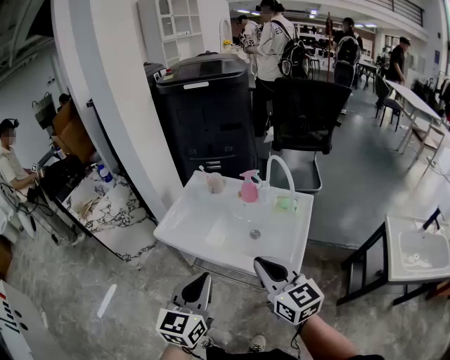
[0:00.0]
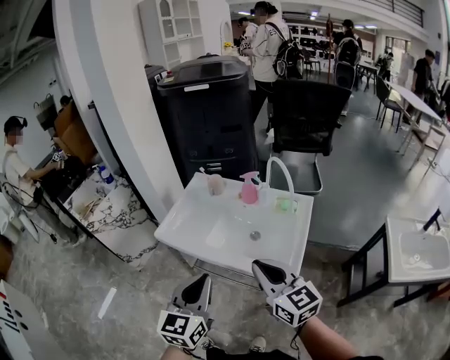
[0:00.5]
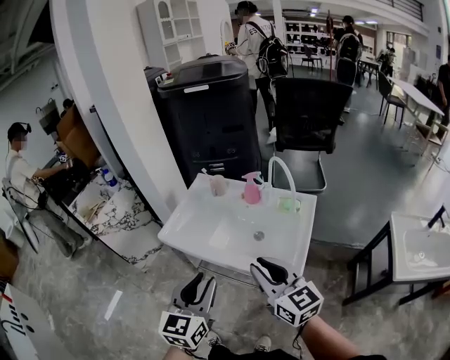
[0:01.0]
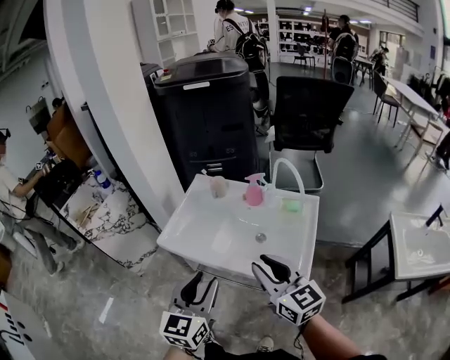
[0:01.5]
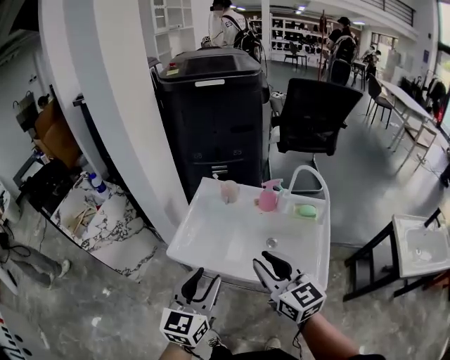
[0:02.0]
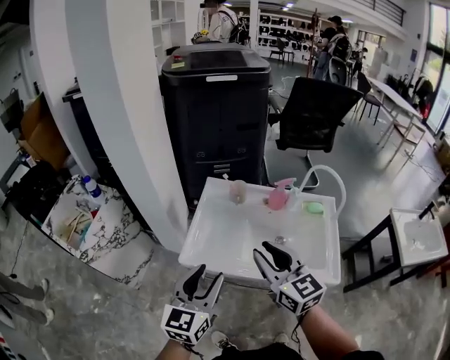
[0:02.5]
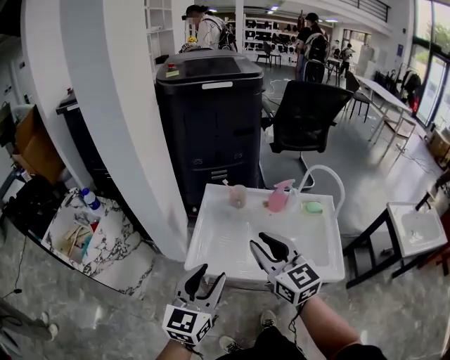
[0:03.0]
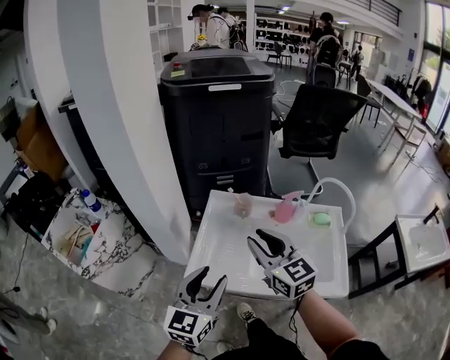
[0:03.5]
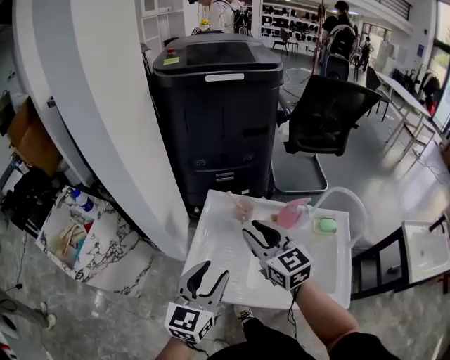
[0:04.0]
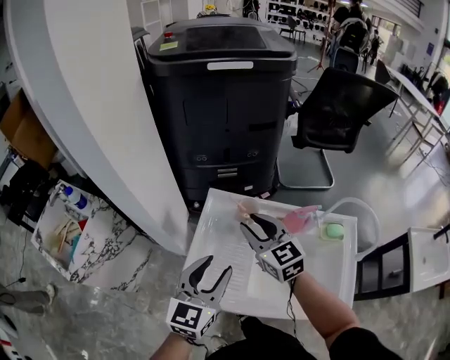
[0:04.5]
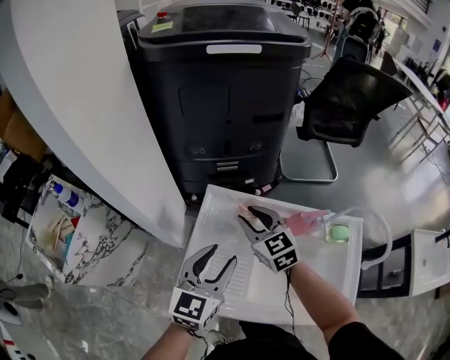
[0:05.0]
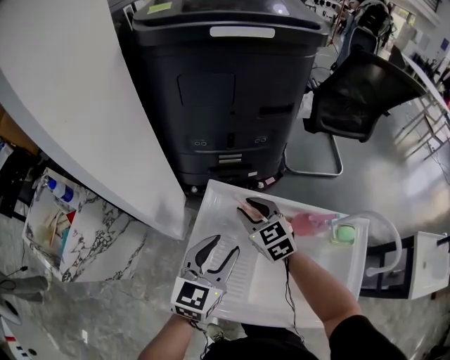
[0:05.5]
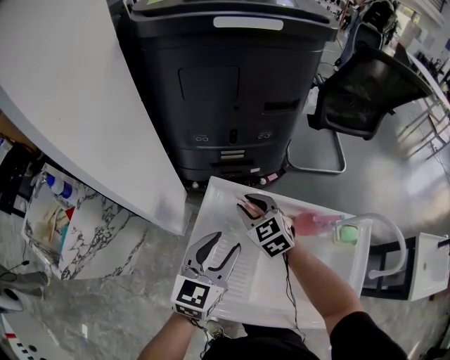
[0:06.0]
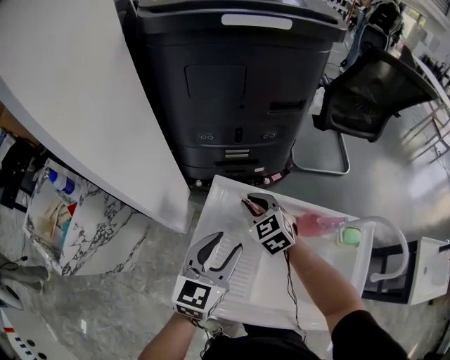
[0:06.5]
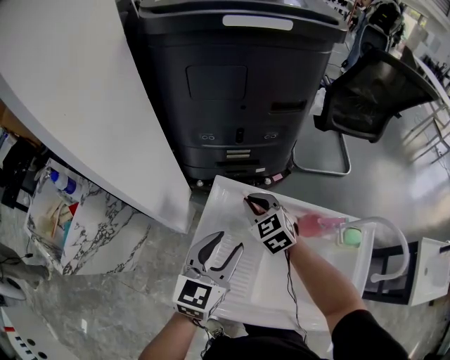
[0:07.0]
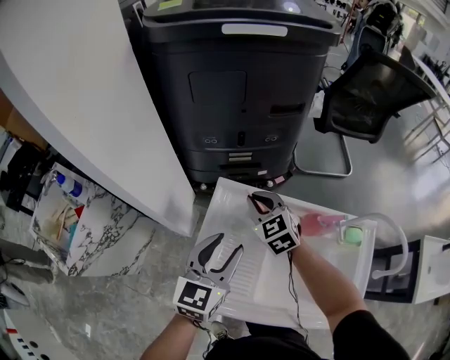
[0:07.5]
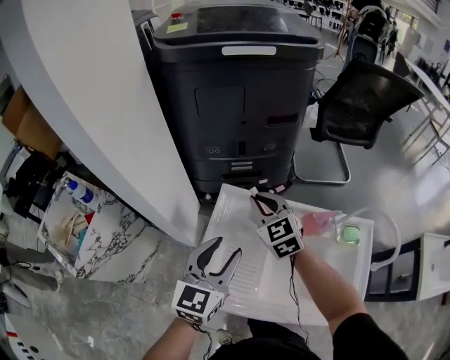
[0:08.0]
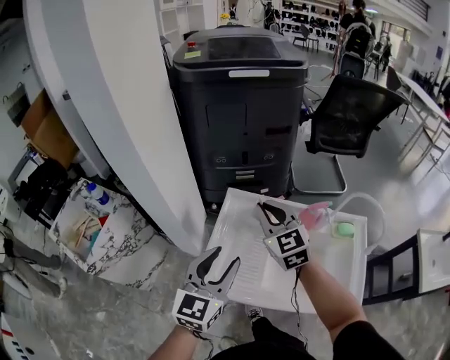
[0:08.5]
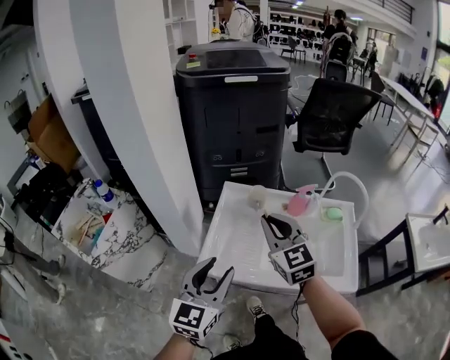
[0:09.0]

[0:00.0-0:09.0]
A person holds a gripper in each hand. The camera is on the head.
0:00.0 to 0:02.0: The right gripper shifts about 15 cm to the left and forward, and opens up. Meanwhile the left gripper is displaced forward and to the left by some 15 cm, and opens its fingers.
0:02.0 to 0:04.5: Both grippers travel together forward, about 30 cm.
0:04.5 to 0:07.0: The right gripper heads downward and forward, covering approximately 20 cm, changes its angle by roughly 20 degrees, and closes its fingers, while the left gripper shifts about 15 cm forward and downward.
0:07.0 to 0:09.0: Both grippers move backward and upward, roughly 35 cm. The right gripper turns by some 30 degrees.

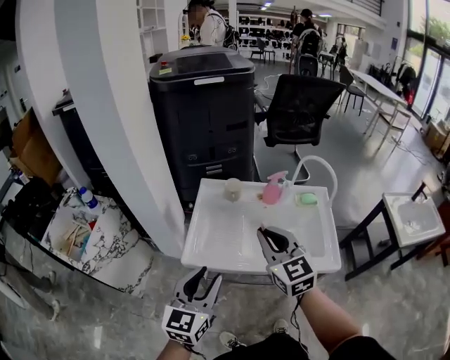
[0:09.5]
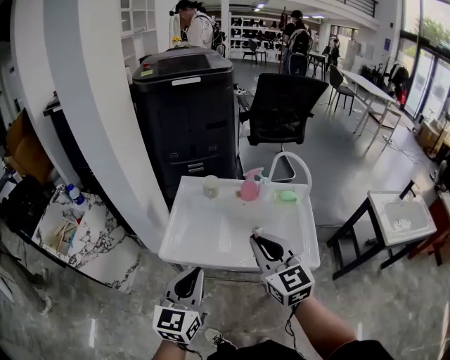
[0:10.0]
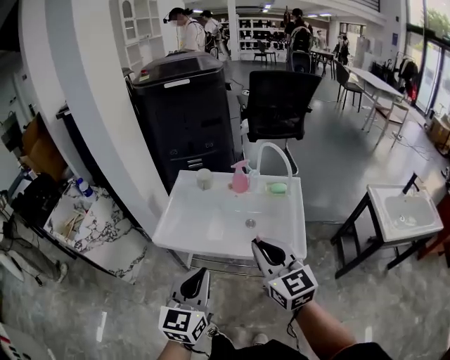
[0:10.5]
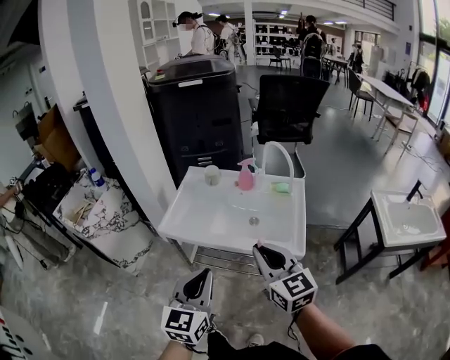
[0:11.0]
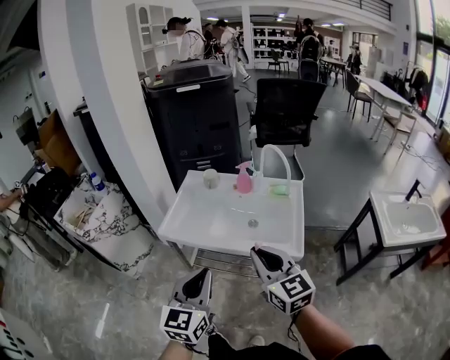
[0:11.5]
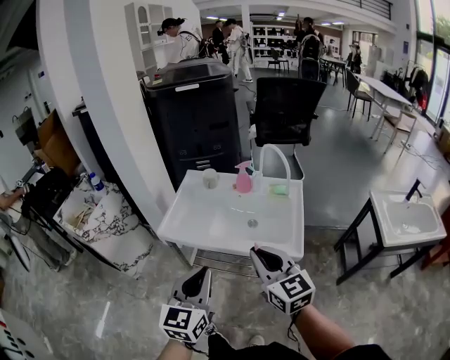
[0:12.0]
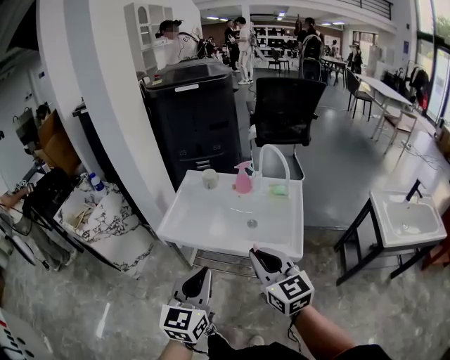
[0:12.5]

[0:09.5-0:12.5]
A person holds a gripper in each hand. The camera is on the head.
0:09.5 to 0:11.0: The left gripper heads to the right and backward, covering roughly 25 cm, and closes up; the right gripper travels backward and to the right by some 25 cm.
0:11.0 to 0:12.5: The grippers make only small movements.

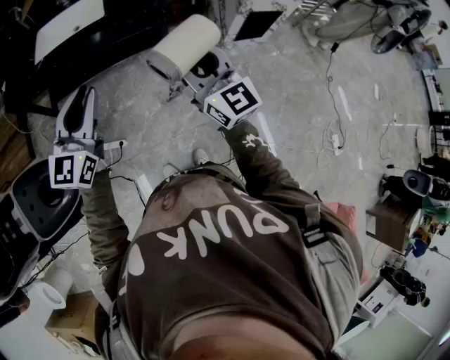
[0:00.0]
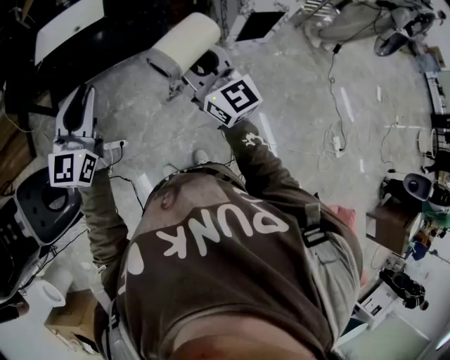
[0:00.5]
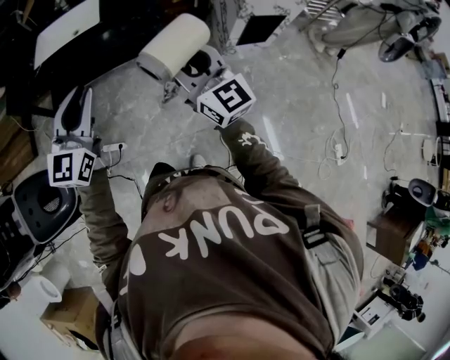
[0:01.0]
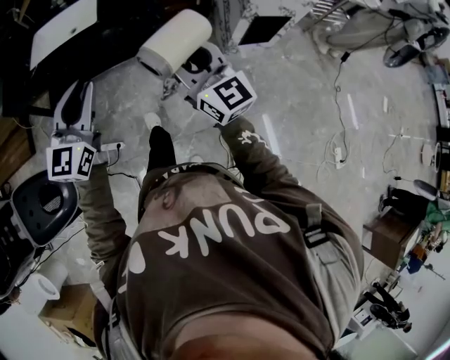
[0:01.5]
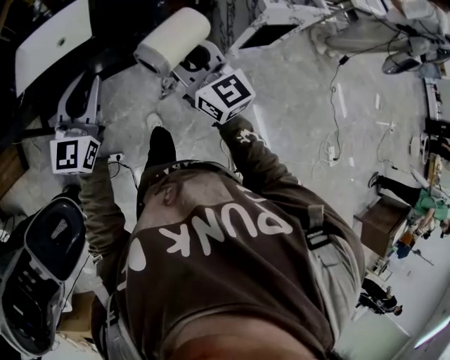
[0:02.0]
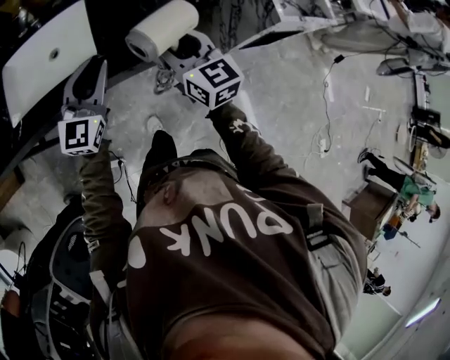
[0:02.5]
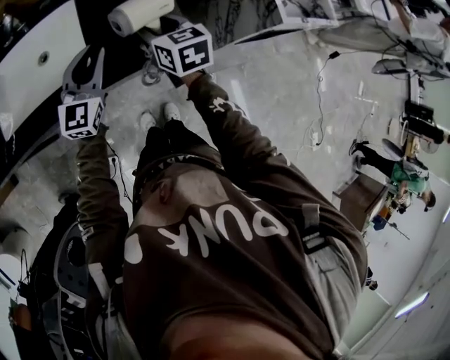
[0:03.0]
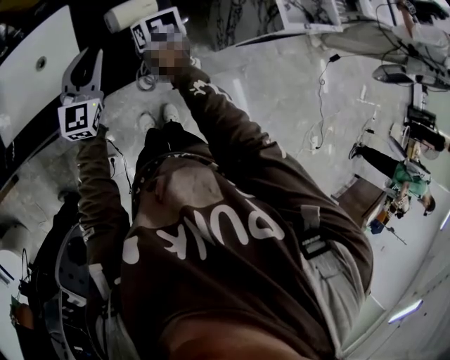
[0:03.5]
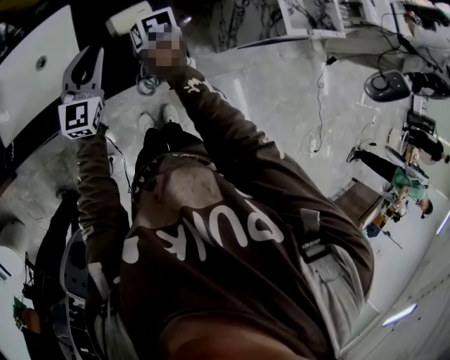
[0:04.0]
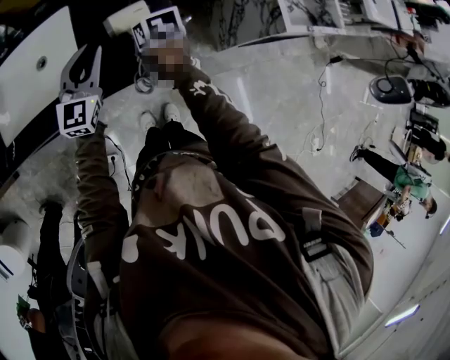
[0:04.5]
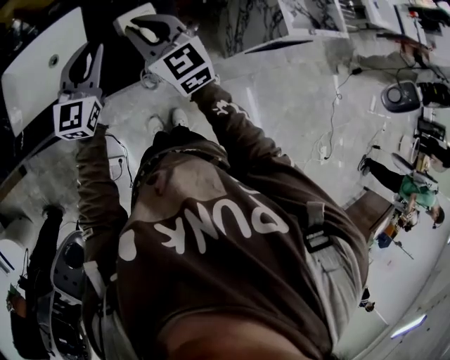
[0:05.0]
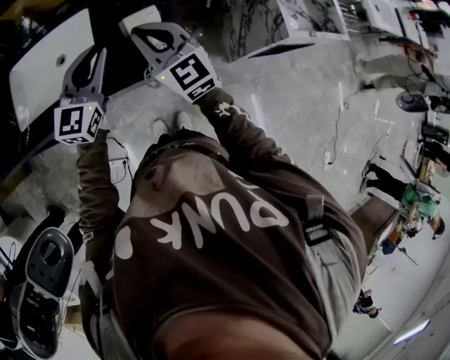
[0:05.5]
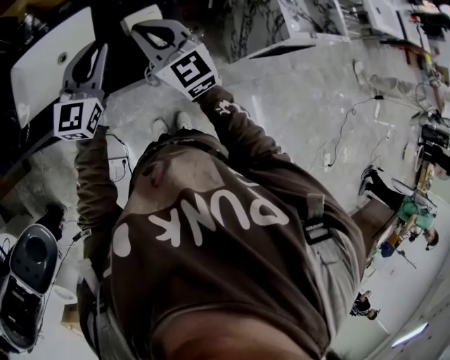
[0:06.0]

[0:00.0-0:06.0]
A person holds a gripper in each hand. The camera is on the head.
0:00.0 to 0:02.0: The two grippers go approximately 30 cm forward.
0:02.0 to 0:04.0: The left gripper moves forward, some 30 cm. Meanwhile the right gripper shifts some 40 cm forward and downward, and angles its fingers downward, by approximately 60 degrees.
0:04.0 to 0:06.0: The right gripper shifts roughly 25 cm upward, angles its fingers upward, by roughly 50 degrees, and closes. Meanwhile the left gripper heads upward and backward, covering roughly 10 cm.

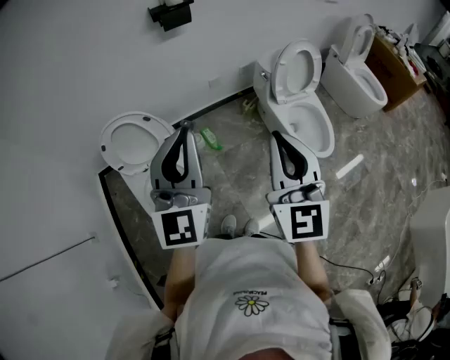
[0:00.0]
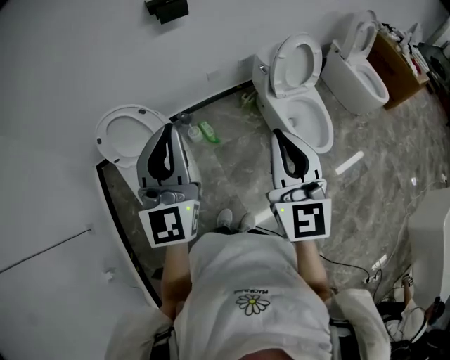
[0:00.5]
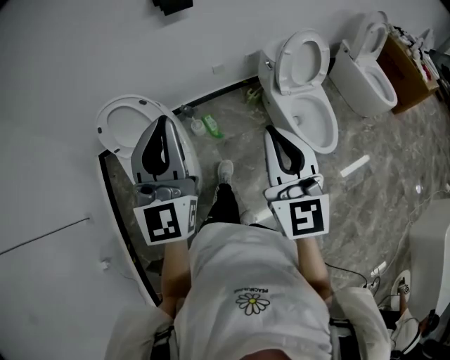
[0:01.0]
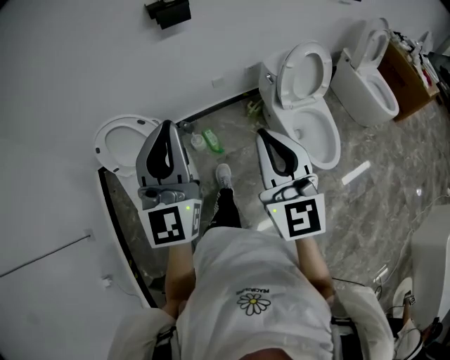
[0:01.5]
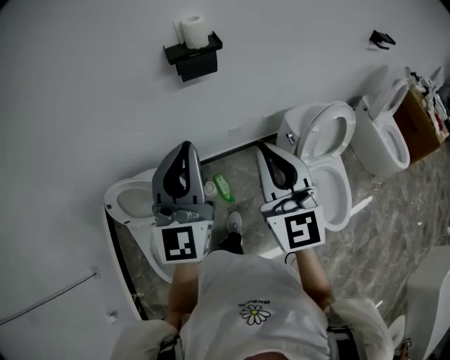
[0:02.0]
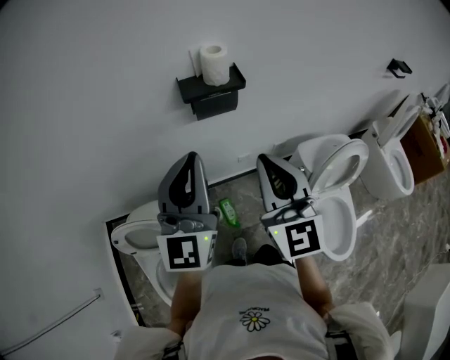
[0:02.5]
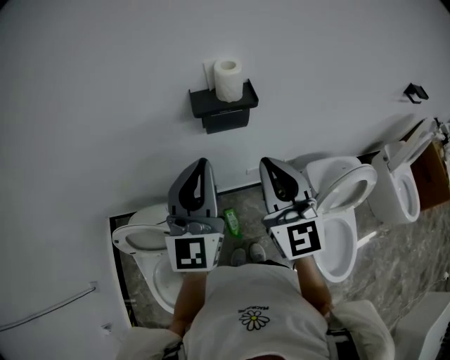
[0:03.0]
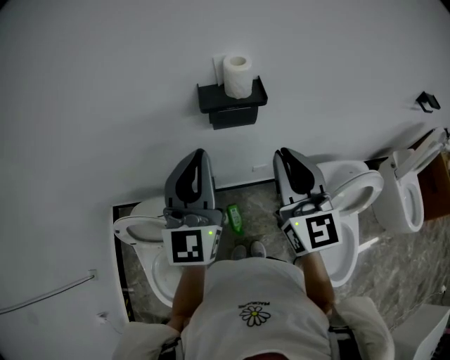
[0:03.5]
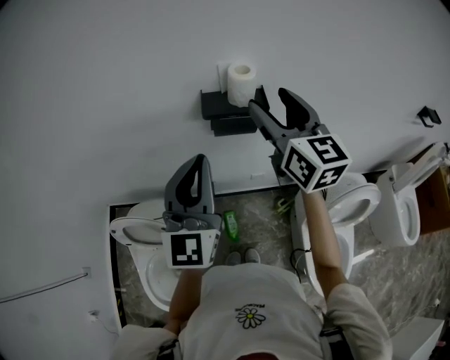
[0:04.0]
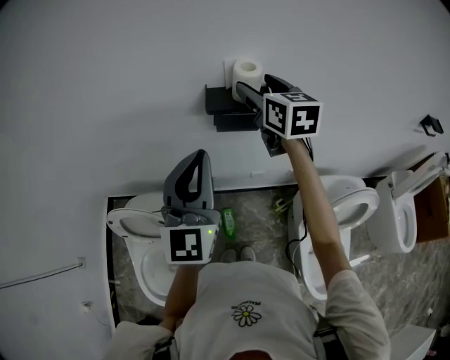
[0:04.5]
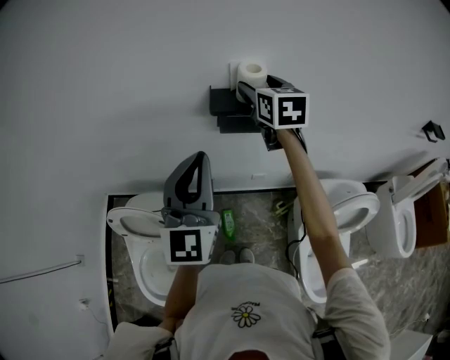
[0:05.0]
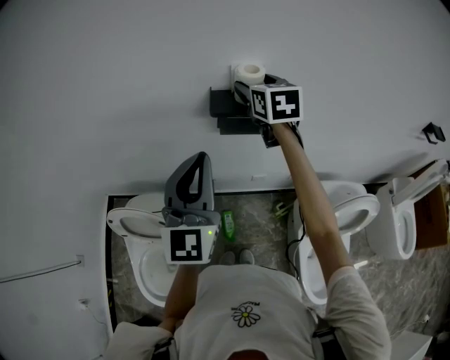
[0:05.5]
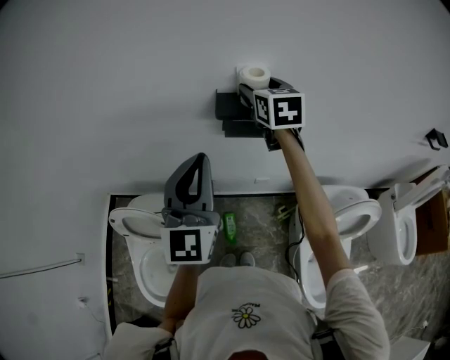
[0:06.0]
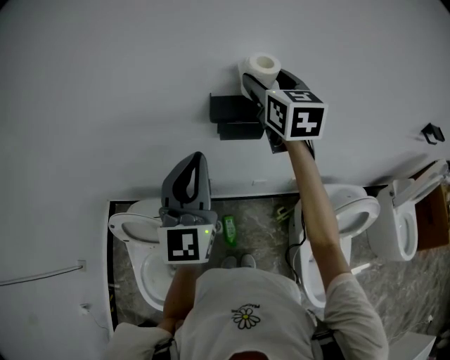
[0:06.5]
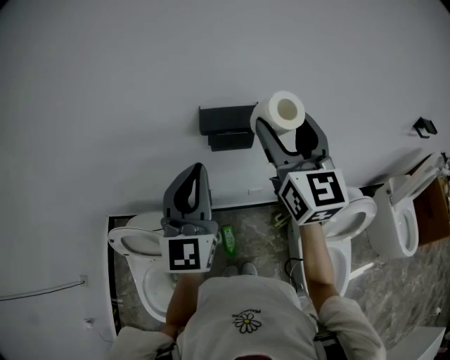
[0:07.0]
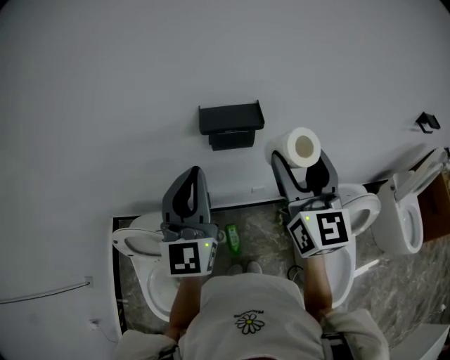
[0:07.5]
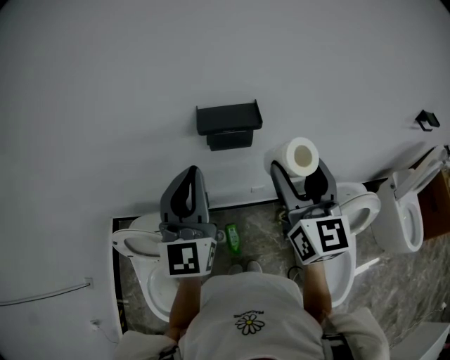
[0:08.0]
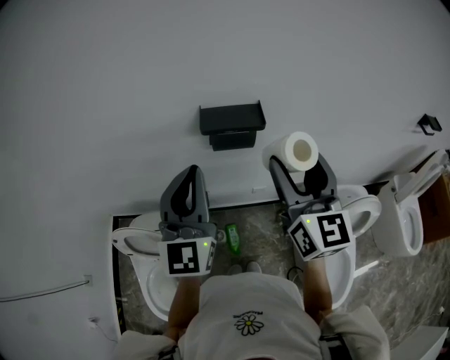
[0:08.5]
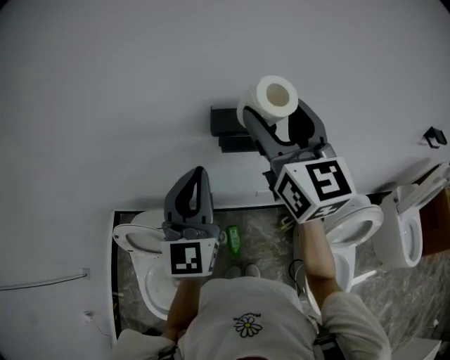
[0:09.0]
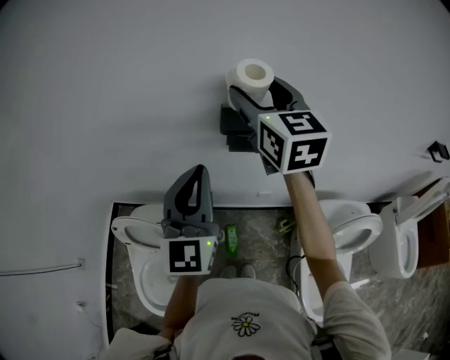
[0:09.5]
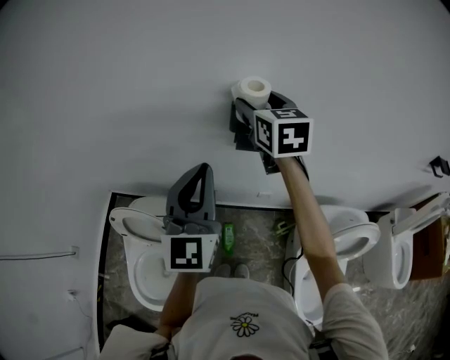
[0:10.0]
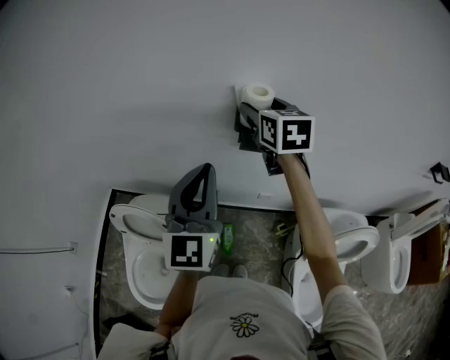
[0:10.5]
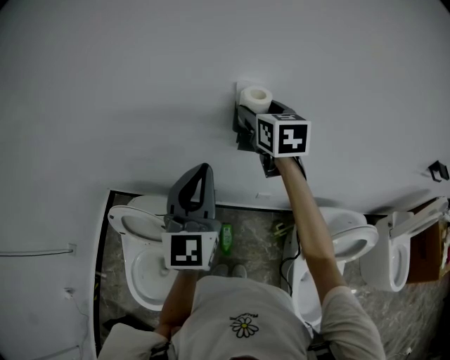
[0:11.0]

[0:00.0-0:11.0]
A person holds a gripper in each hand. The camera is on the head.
0:00.0 to 0:02.0: The grippers both shift forward by some 30 cm.
0:02.0 to 0:03.5: Both grippers move forward, approximately 20 cm.
0:03.5 to 0:05.5: The right gripper heads forward, covering roughly 25 cm, turns by approximately 30 degrees, and opens.
0:05.5 to 0:07.5: The right gripper heads backward, covering about 25 cm, and changes its angle by about 30 degrees.
0:07.5 to 0:09.0: The right gripper is displaced upward, to the left and forward by roughly 10 cm.
0:09.0 to 0:11.0: The right gripper travels forward and downward by roughly 20 cm, and swivels roughly 30 degrees.
